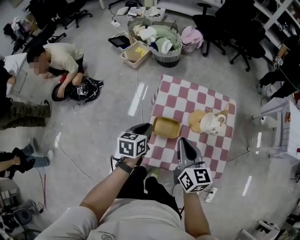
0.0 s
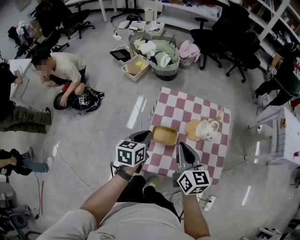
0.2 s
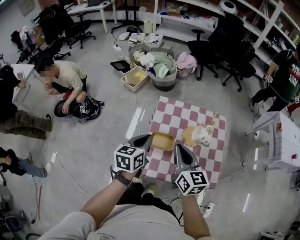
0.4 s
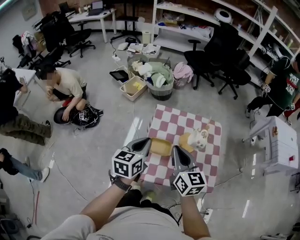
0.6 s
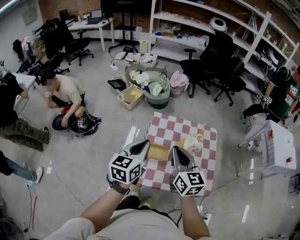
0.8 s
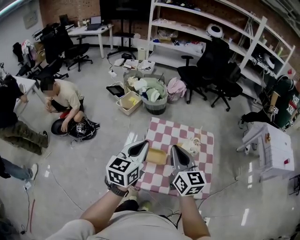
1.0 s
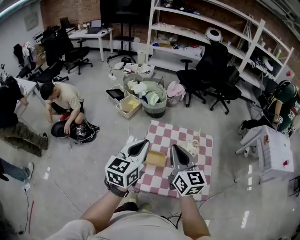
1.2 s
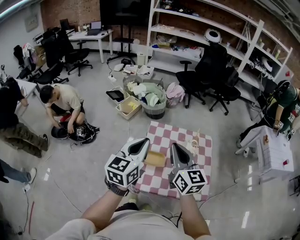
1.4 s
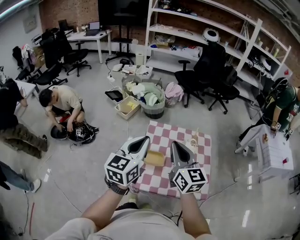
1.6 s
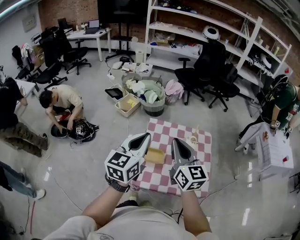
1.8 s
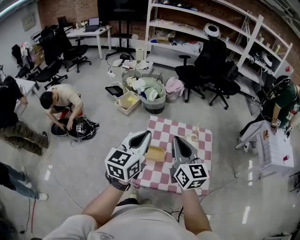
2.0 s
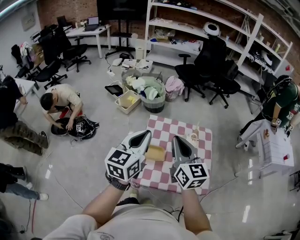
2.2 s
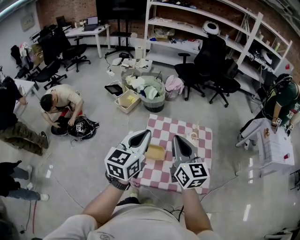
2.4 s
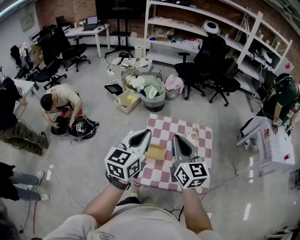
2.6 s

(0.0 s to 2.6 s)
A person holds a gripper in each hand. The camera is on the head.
0.0 s - 1.2 s: The right gripper shifts about 15 cm upward; the left gripper moves upward, some 30 cm, and tilts its fingers about 30 degrees upward.
1.2 s - 2.6 s: The grippers stay close to where they were, moving slightly.

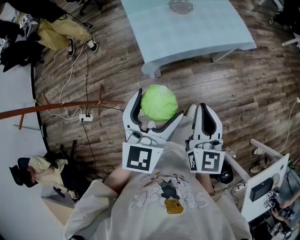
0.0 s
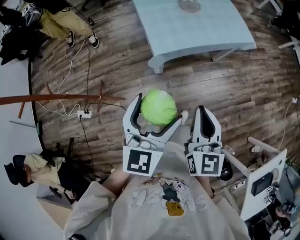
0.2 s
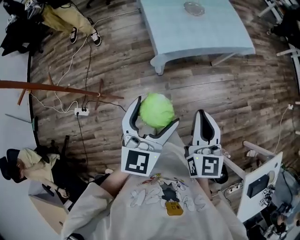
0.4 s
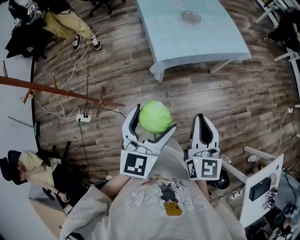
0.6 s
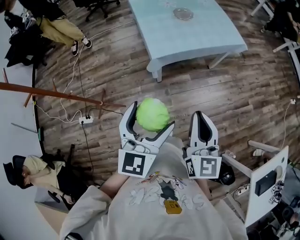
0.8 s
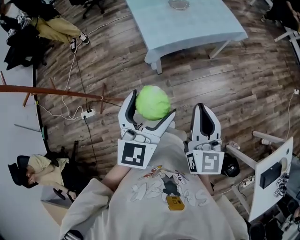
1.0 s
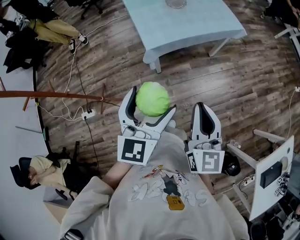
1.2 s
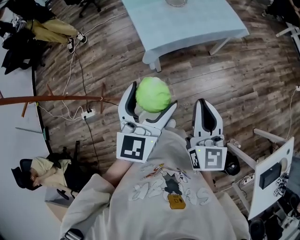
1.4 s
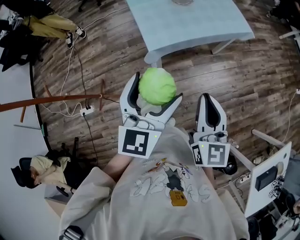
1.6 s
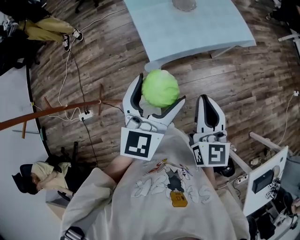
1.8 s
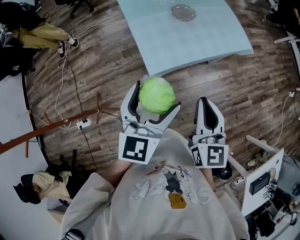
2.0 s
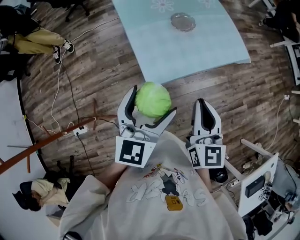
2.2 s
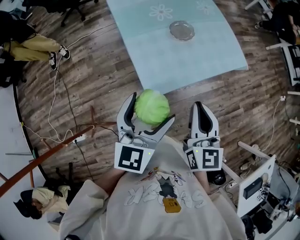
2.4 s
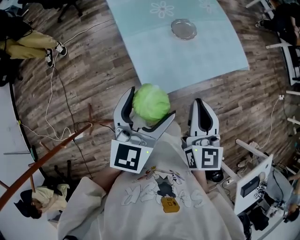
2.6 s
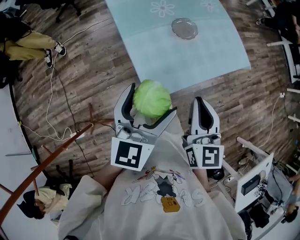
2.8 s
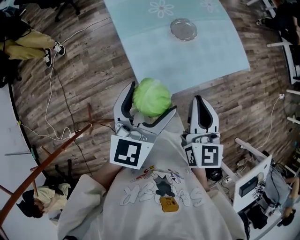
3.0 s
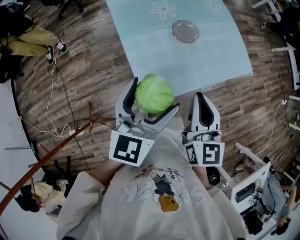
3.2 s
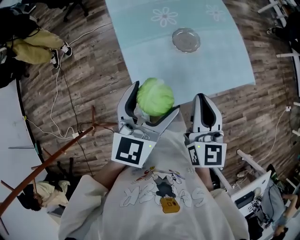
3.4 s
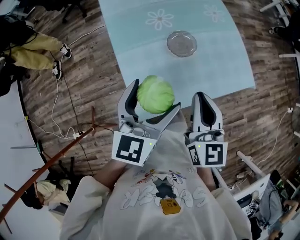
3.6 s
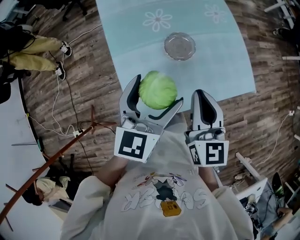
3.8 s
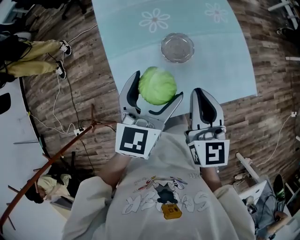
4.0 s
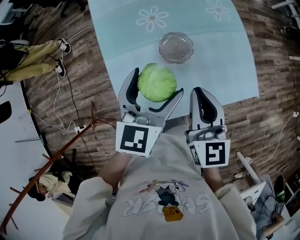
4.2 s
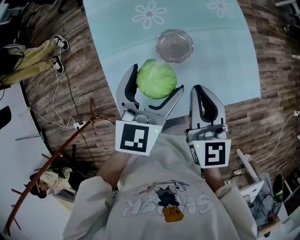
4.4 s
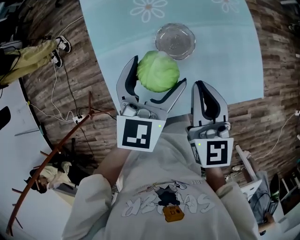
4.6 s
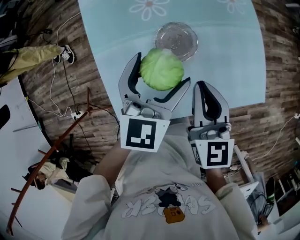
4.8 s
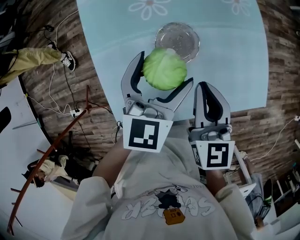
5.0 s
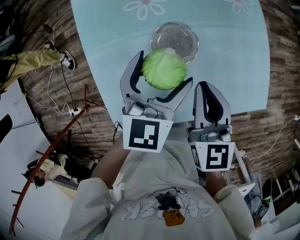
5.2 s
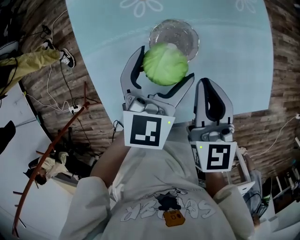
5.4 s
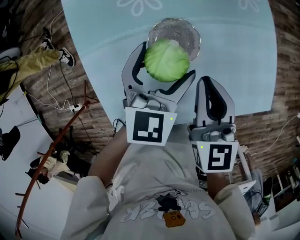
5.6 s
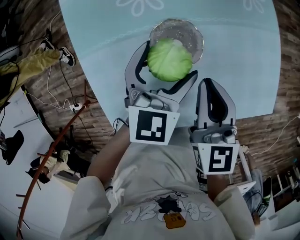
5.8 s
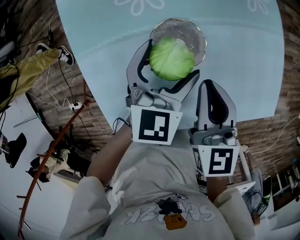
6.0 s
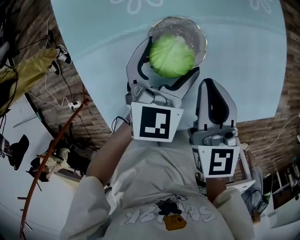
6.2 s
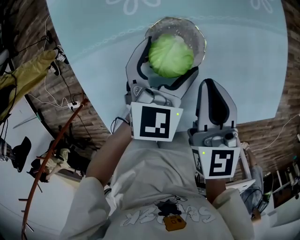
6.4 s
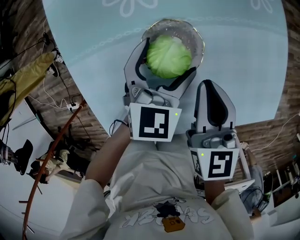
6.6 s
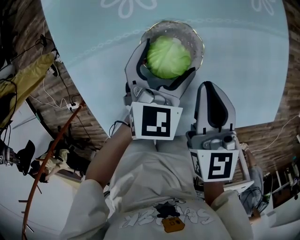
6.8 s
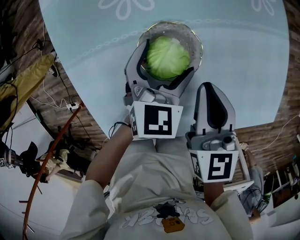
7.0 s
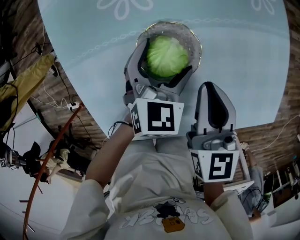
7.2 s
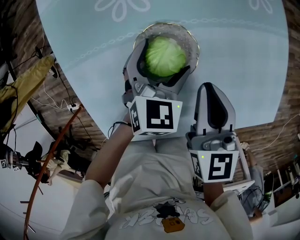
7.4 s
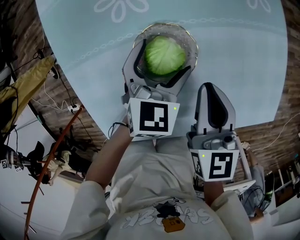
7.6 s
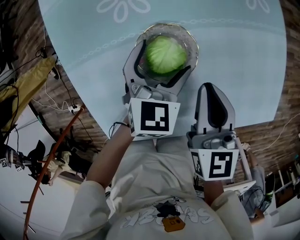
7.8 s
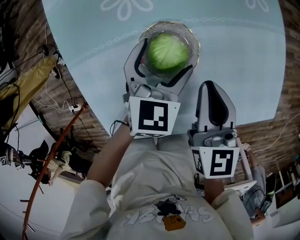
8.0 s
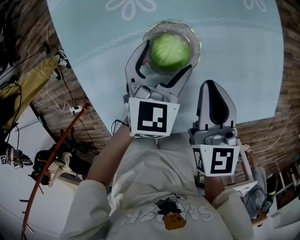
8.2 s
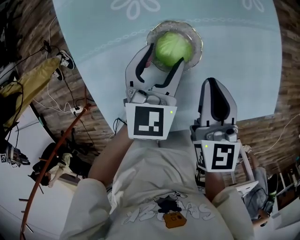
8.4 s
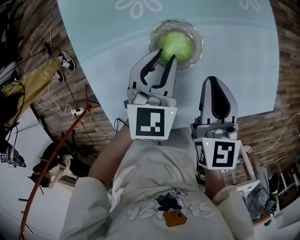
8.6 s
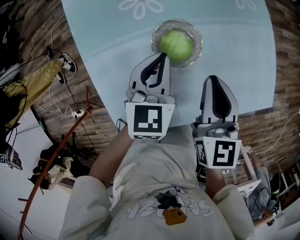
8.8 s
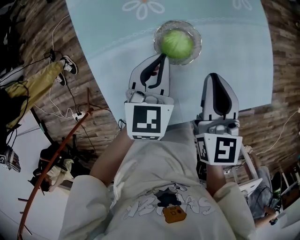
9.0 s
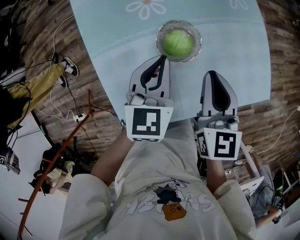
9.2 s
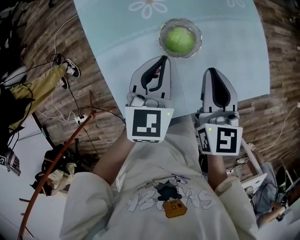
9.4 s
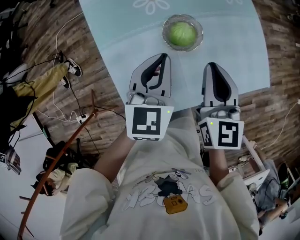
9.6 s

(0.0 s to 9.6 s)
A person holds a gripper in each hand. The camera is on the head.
0.0 s - 1.6 s: The left gripper moves about 15 cm backward and comes back. The right gripper travels backward and back again, about 15 cm each way.
1.6 s - 3.2 s: The grippers both shift forward by roughly 35 cm.
3.2 s - 4.8 s: The left gripper moves forward, to the right and downward, roughly 35 cm. The right gripper travels forward, downward and to the right by approximately 30 cm.
4.8 s - 6.4 s: Both grippers travel together downward and forward, roughly 15 cm.
6.4 s - 8.0 s: There are only small adjustments of the grippers.
8.0 s - 9.6 s: The grippers both shift upward, backward and to the left by about 20 cm. The left gripper closes.

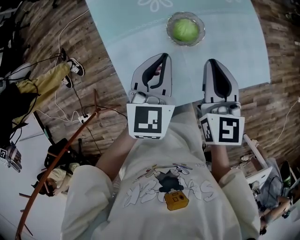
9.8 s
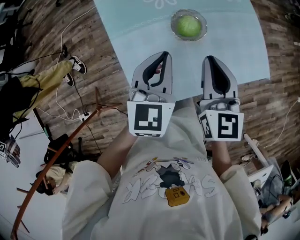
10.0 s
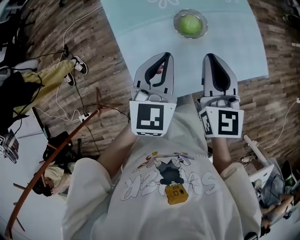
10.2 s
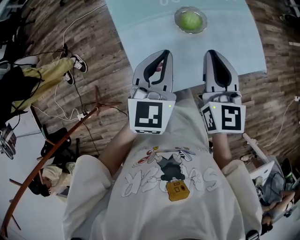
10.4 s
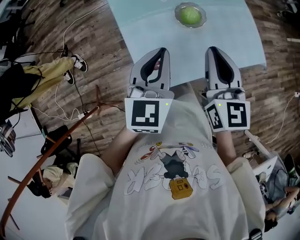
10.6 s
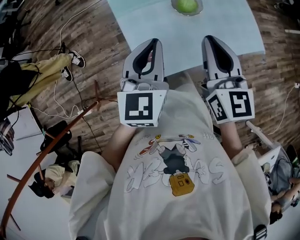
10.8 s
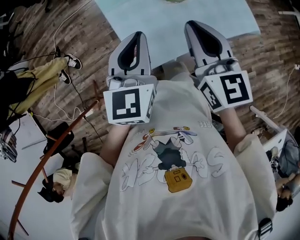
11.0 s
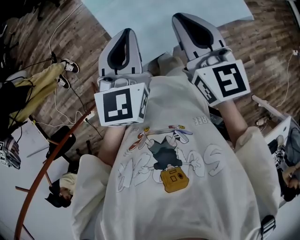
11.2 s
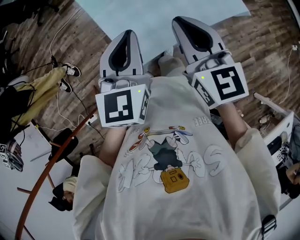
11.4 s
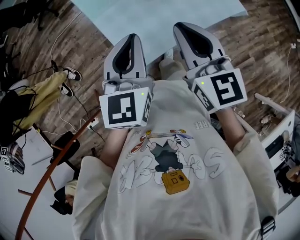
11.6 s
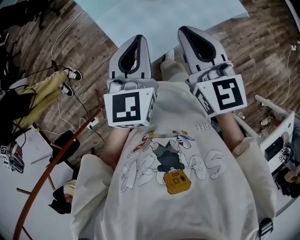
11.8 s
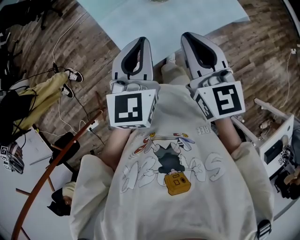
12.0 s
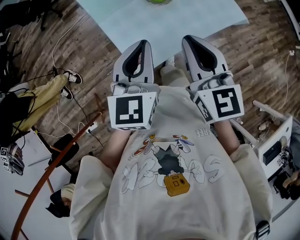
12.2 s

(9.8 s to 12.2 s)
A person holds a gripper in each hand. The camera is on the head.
9.8 s - 11.0 s: Both grippers move backward, to the left and upward, approximately 20 cm.
11.0 s - 12.2 s: The left gripper shifts by some 5 cm. The right gripper travels backward by some 5 cm.

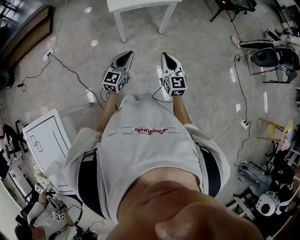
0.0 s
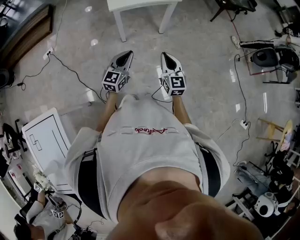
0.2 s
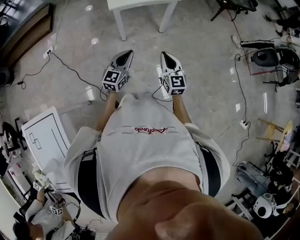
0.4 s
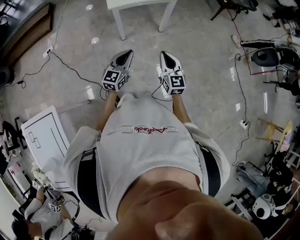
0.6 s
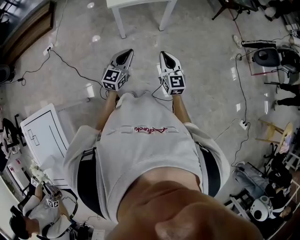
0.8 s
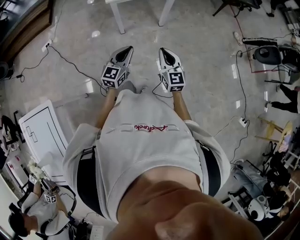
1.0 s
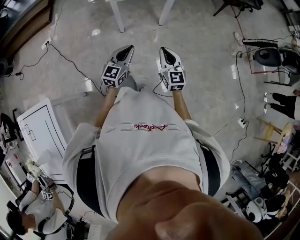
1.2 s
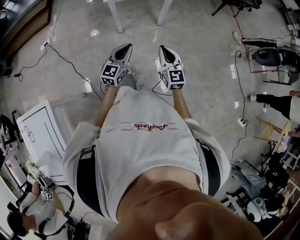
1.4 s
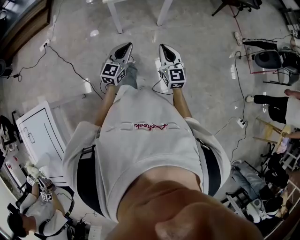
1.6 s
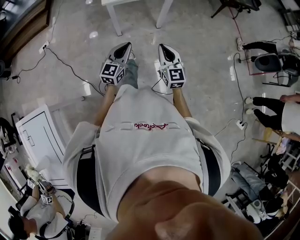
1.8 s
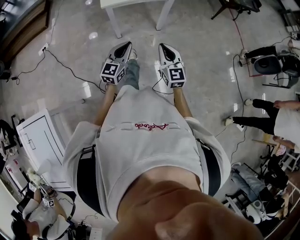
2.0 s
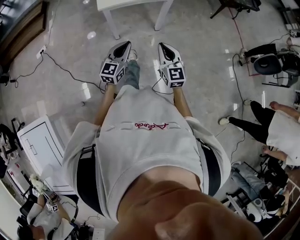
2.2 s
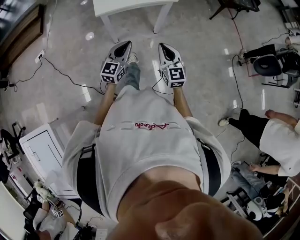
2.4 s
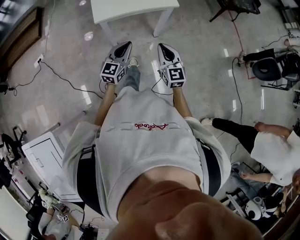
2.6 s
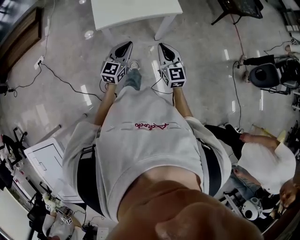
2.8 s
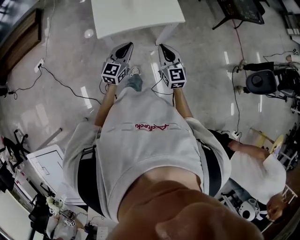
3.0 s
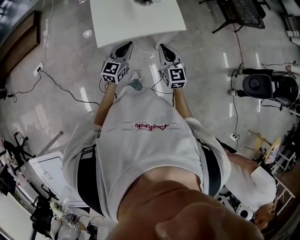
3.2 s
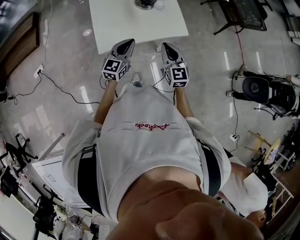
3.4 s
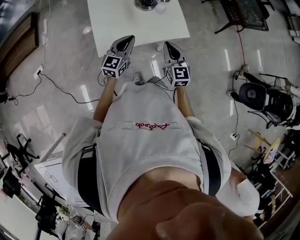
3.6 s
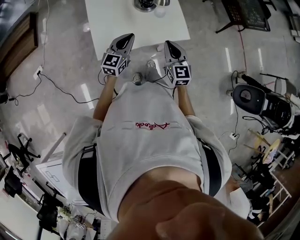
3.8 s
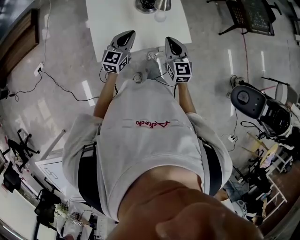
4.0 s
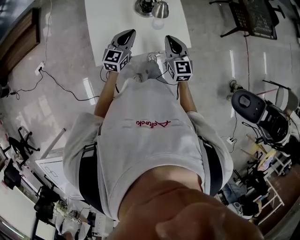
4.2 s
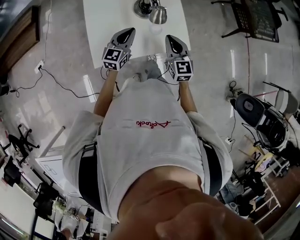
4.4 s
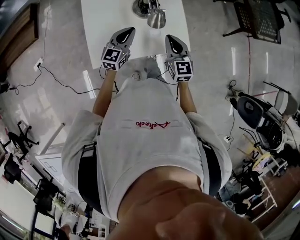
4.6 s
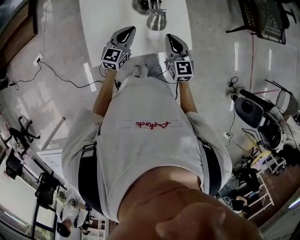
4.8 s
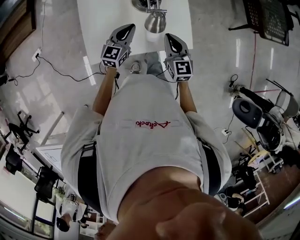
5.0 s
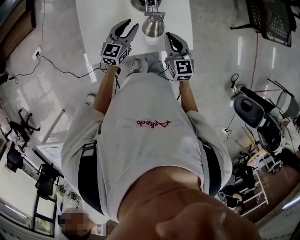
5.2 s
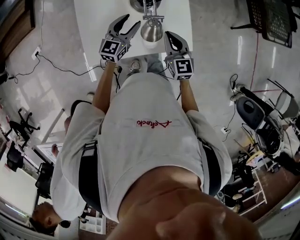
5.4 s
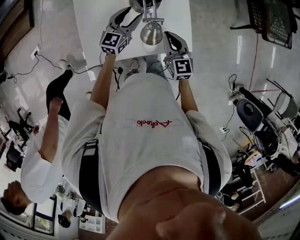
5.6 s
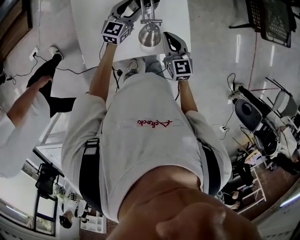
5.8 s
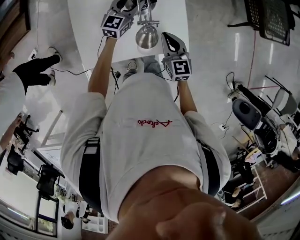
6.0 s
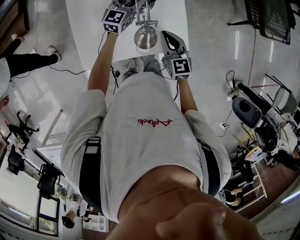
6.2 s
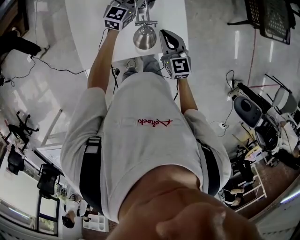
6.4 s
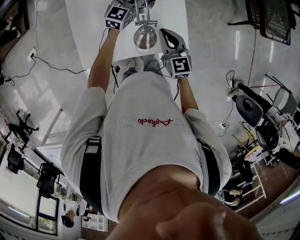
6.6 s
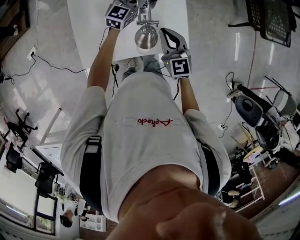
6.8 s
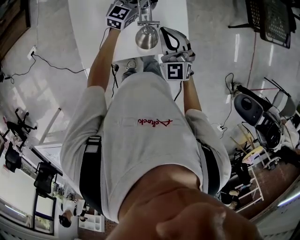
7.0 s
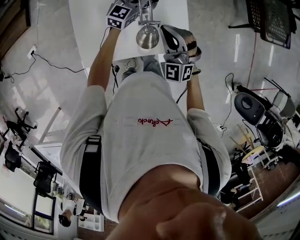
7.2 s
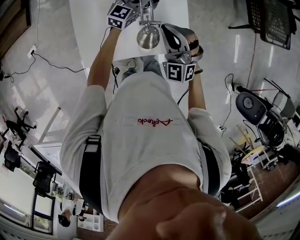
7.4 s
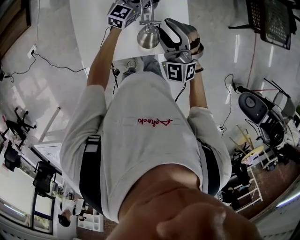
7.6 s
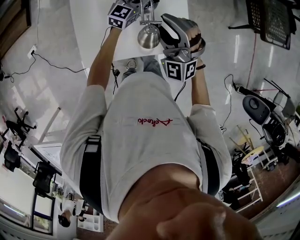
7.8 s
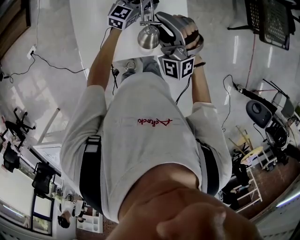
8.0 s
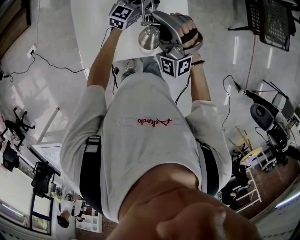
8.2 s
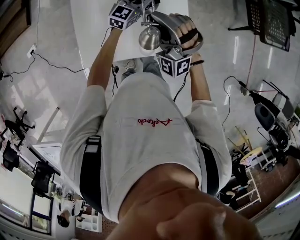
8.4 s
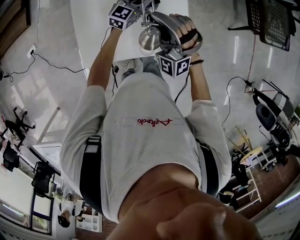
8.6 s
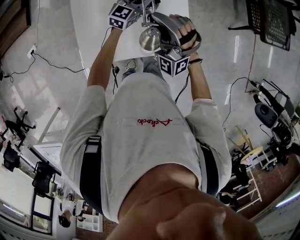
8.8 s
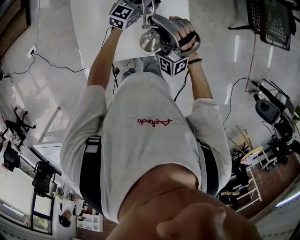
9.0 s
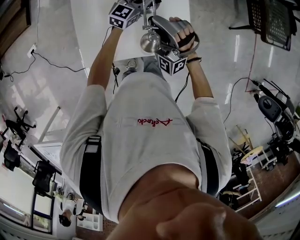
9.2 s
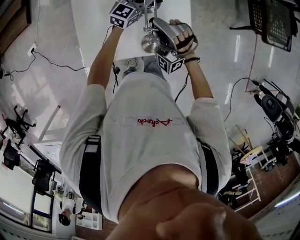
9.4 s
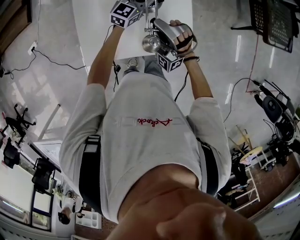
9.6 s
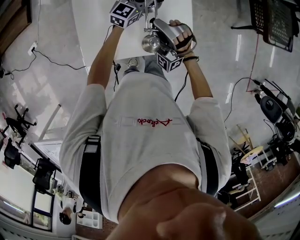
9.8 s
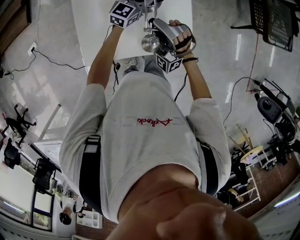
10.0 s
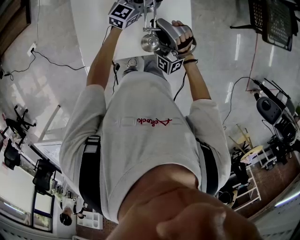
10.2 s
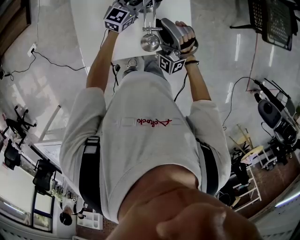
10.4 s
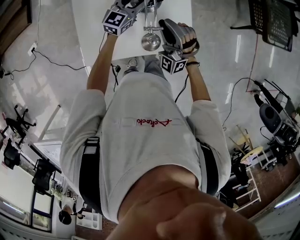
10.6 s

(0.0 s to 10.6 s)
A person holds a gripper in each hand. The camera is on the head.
0.0 s - 1.6 s: The left gripper moves to the right, some 5 cm.
1.6 s - 3.0 s: The two grippers go some 30 cm forward.
3.0 s - 4.6 s: Both grippers travel together forward, about 25 cm.
4.6 s - 6.0 s: The right gripper is displaced downward by some 5 cm, while the left gripper goes approximately 15 cm forward, and opens up.
6.0 s - 7.6 s: The right gripper shifts approximately 10 cm upward, rolls counterclockwise, seen from behind, by some 50 degrees, and opens its fingers.
7.6 s - 9.0 s: The right gripper changes its angle by some 30 degrees, and closes.
9.0 s - 10.6 s: The right gripper is displaced downward by some 5 cm.
